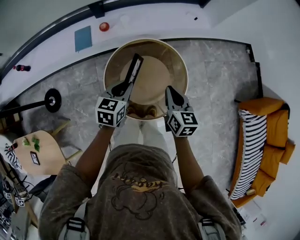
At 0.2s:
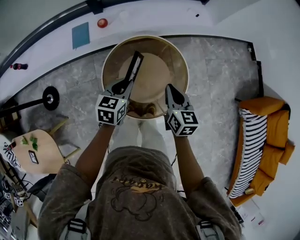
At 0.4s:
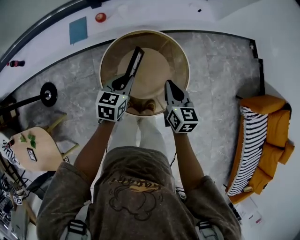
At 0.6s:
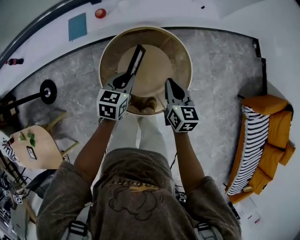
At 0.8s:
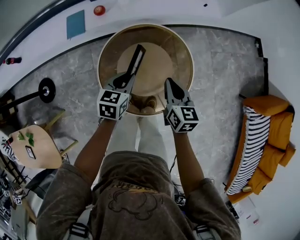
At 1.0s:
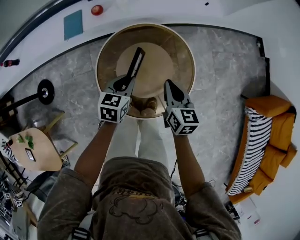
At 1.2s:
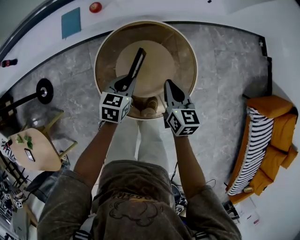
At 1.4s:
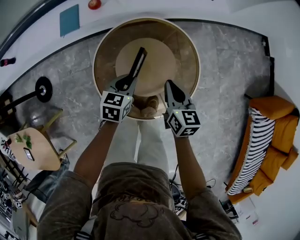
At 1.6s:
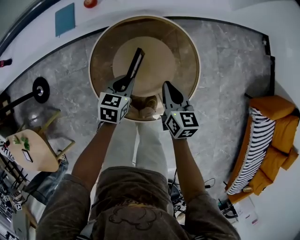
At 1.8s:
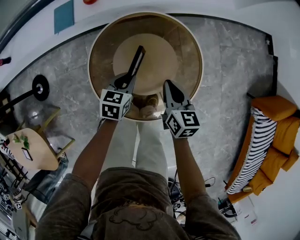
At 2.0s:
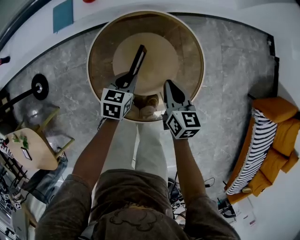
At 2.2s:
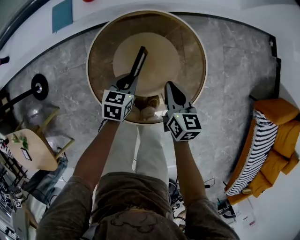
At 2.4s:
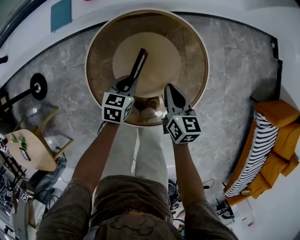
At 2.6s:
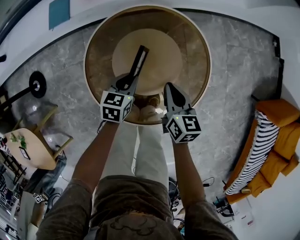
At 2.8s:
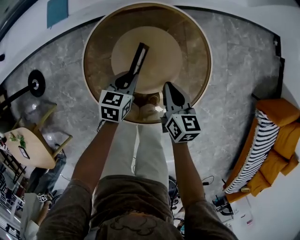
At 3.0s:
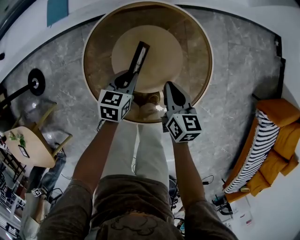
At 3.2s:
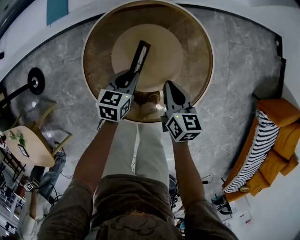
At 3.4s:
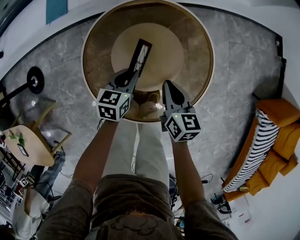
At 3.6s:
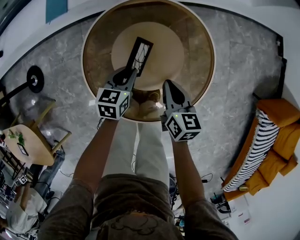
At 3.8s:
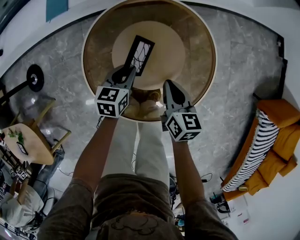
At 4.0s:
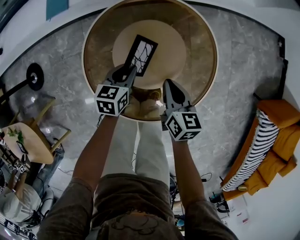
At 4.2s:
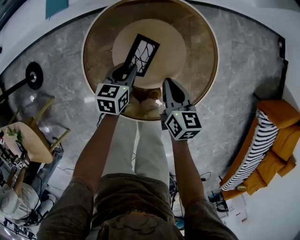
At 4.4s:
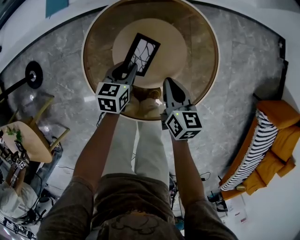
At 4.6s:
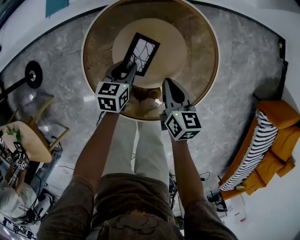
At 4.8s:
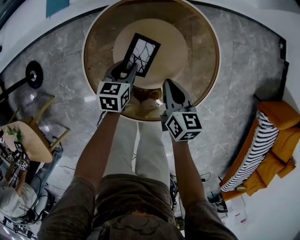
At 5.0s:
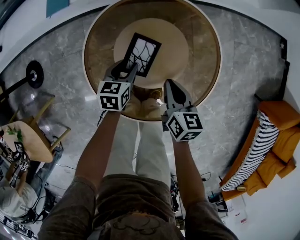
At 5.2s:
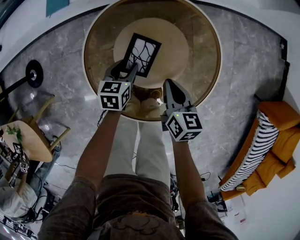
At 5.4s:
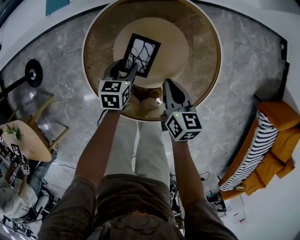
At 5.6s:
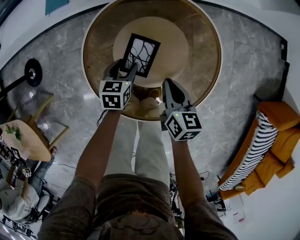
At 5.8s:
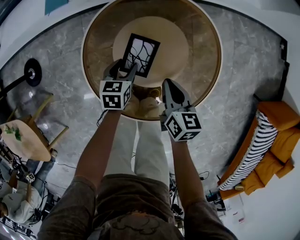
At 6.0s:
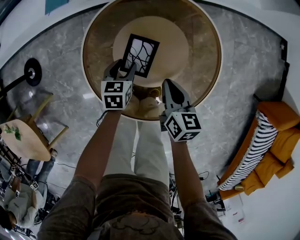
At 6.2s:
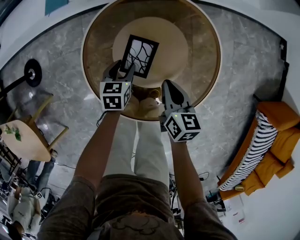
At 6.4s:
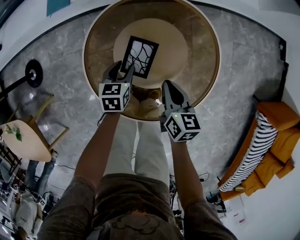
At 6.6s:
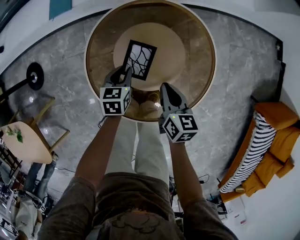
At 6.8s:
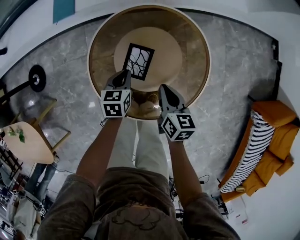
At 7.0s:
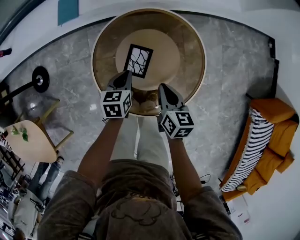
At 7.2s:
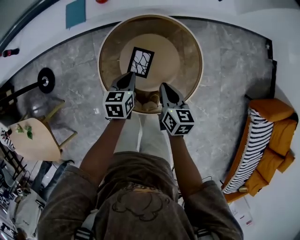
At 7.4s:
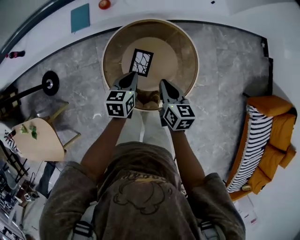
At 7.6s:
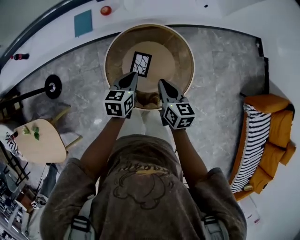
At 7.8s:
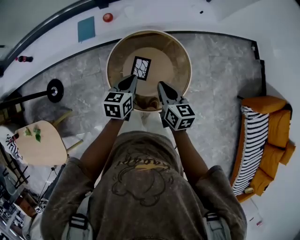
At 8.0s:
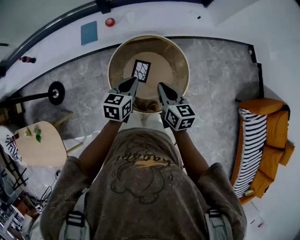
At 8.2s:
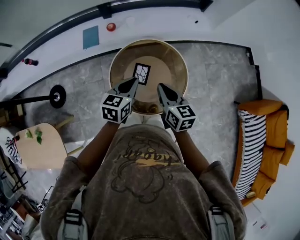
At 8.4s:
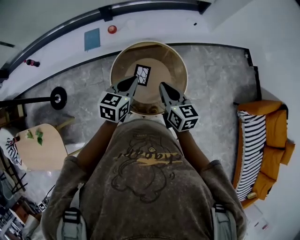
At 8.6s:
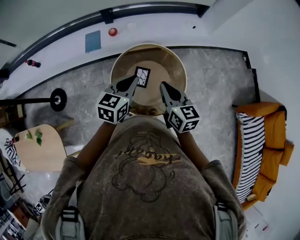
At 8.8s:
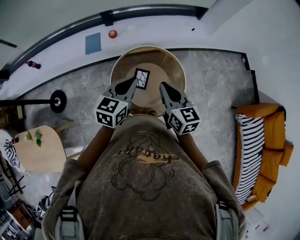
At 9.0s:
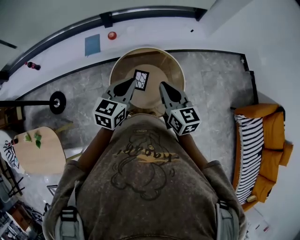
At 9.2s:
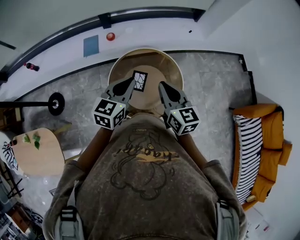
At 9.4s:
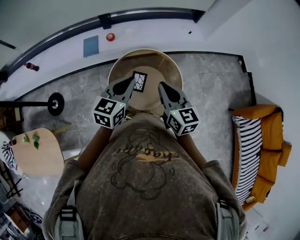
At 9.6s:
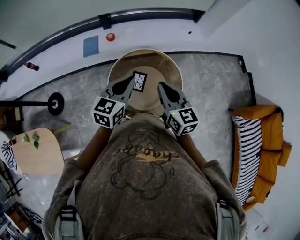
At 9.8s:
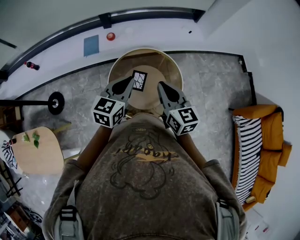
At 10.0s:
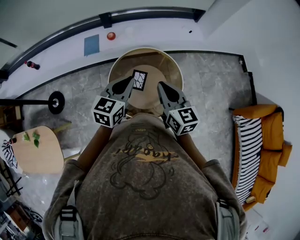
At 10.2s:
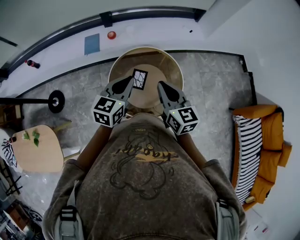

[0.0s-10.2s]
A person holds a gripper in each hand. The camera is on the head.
0.0s to 1.4s: Both grippers travel together downward, roughly 15 cm.
1.4s to 3.0s: Both grippers move downward, roughly 10 cm.
3.0s to 4.4s: There are only small adjustments of the grippers.
4.4s to 5.8s: The left gripper opens its fingers.
5.8s to 7.2s: Both grippers travel together upward, roughly 15 cm. The left gripper closes.
7.2s to 8.8s: The two grippers go about 30 cm upward. The left gripper turns by roughly 30 degrees. Meanwhile the right gripper rotates some 30 degrees.
8.8s to 10.2s: The grippers move only a little.

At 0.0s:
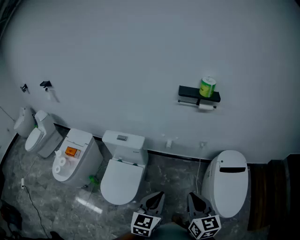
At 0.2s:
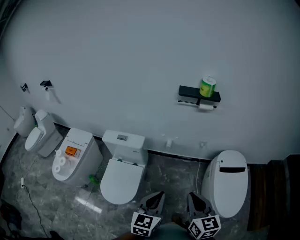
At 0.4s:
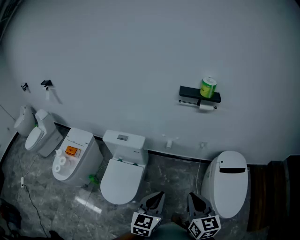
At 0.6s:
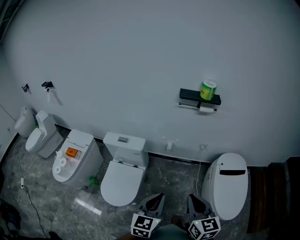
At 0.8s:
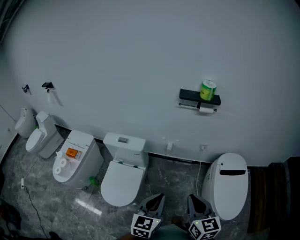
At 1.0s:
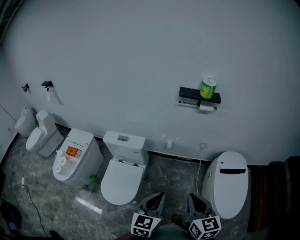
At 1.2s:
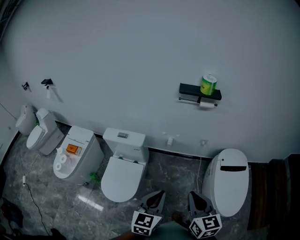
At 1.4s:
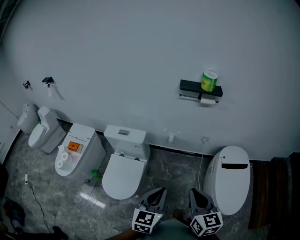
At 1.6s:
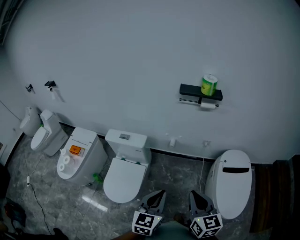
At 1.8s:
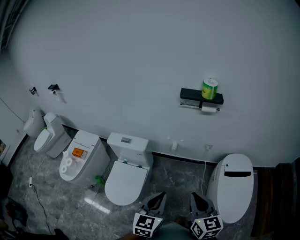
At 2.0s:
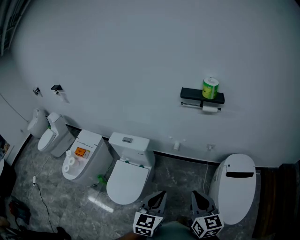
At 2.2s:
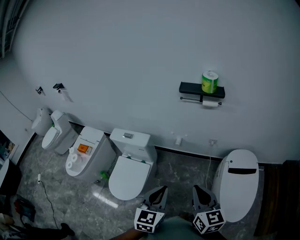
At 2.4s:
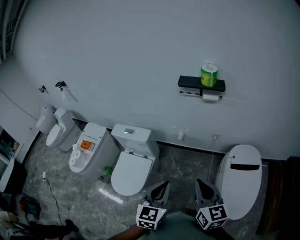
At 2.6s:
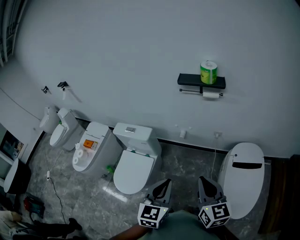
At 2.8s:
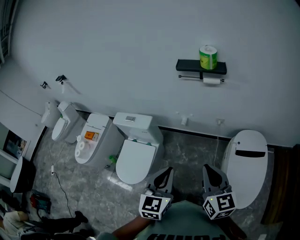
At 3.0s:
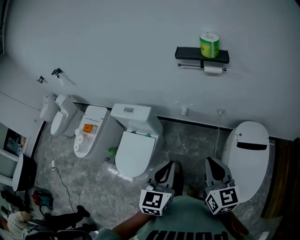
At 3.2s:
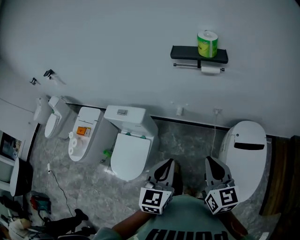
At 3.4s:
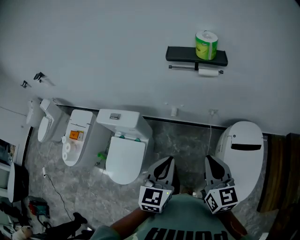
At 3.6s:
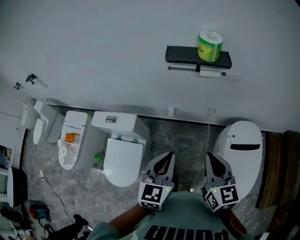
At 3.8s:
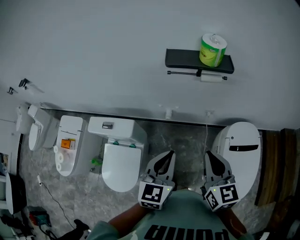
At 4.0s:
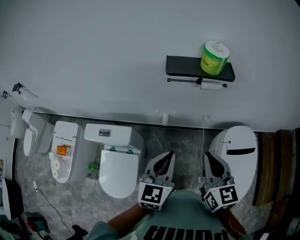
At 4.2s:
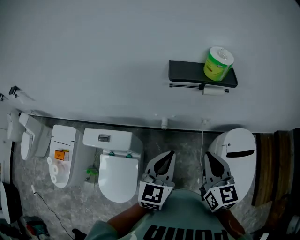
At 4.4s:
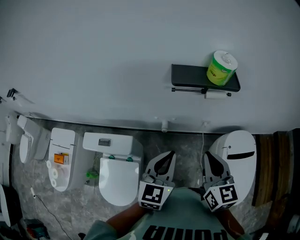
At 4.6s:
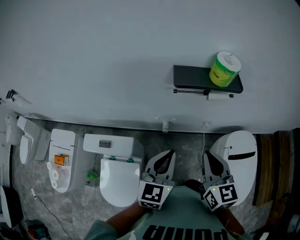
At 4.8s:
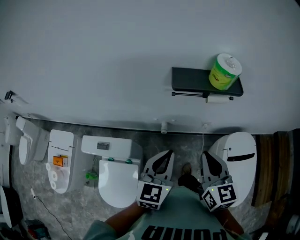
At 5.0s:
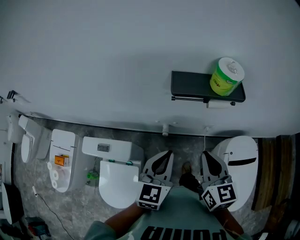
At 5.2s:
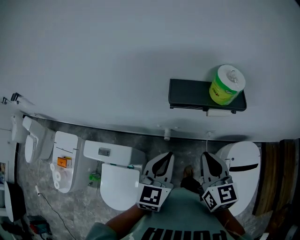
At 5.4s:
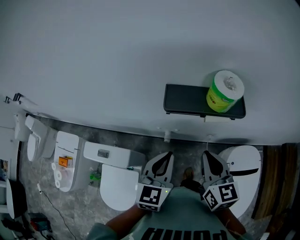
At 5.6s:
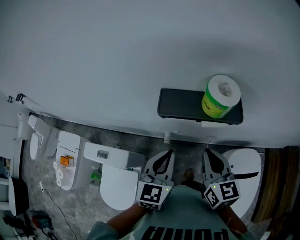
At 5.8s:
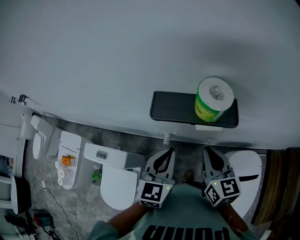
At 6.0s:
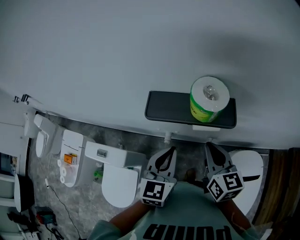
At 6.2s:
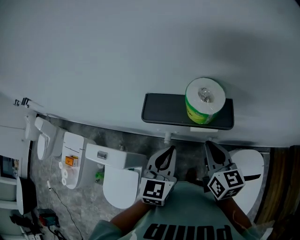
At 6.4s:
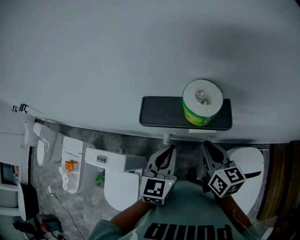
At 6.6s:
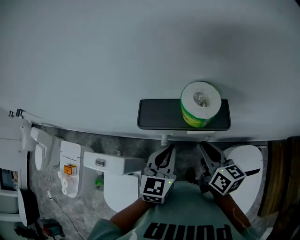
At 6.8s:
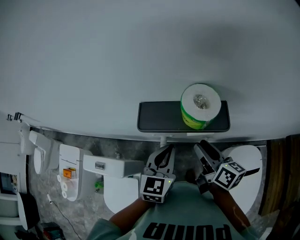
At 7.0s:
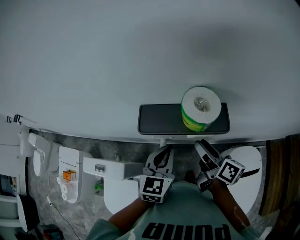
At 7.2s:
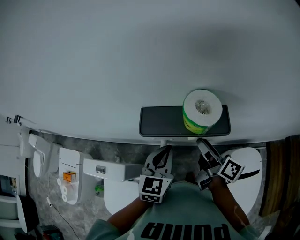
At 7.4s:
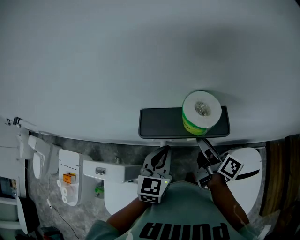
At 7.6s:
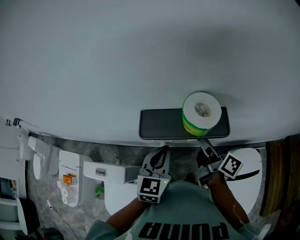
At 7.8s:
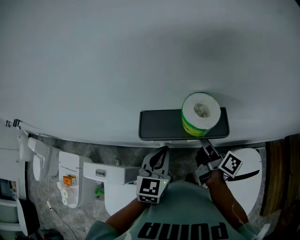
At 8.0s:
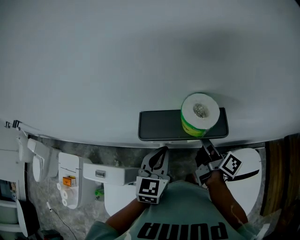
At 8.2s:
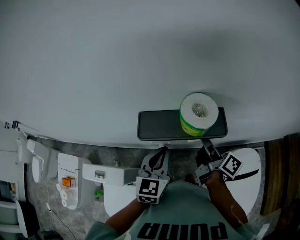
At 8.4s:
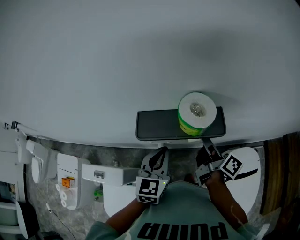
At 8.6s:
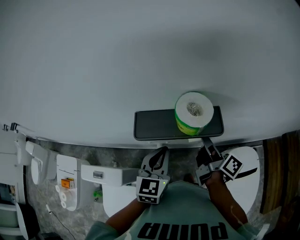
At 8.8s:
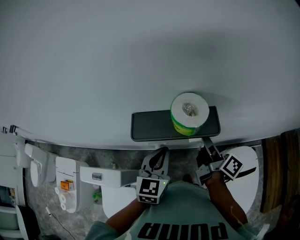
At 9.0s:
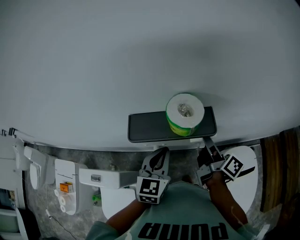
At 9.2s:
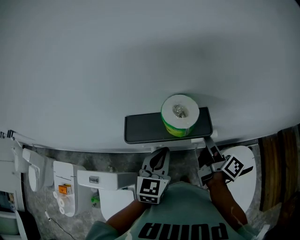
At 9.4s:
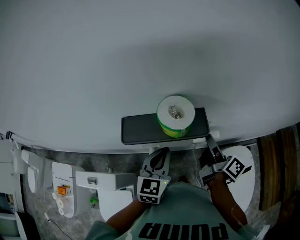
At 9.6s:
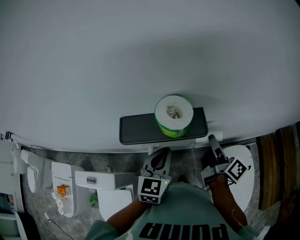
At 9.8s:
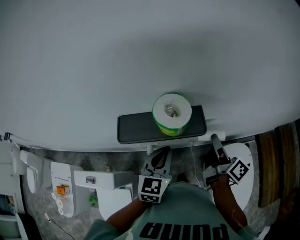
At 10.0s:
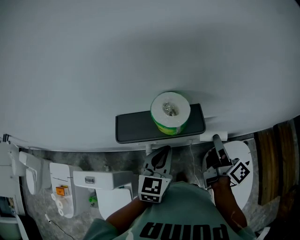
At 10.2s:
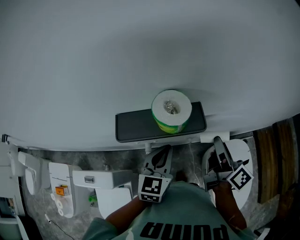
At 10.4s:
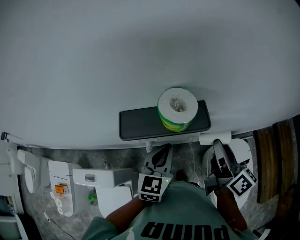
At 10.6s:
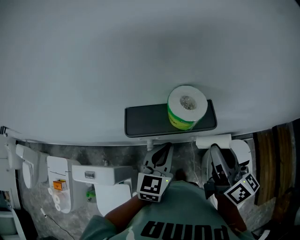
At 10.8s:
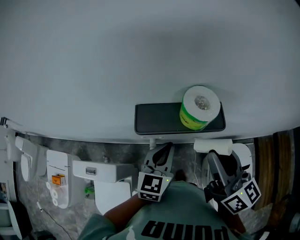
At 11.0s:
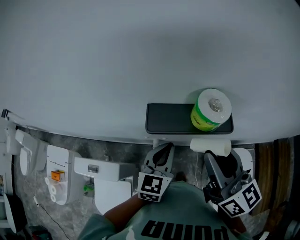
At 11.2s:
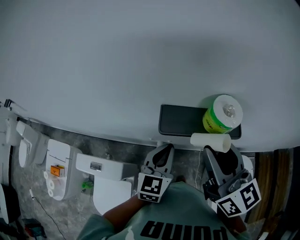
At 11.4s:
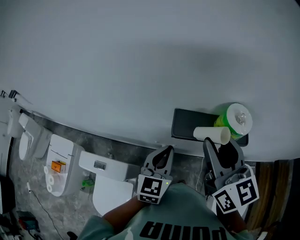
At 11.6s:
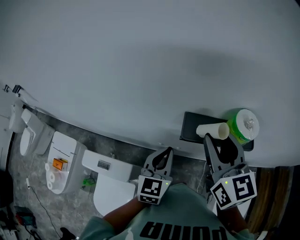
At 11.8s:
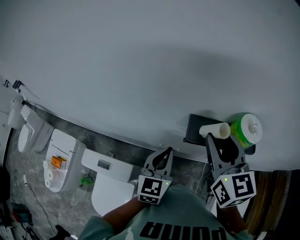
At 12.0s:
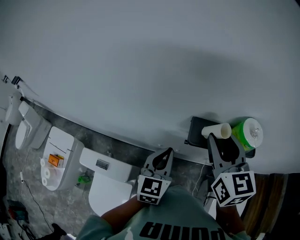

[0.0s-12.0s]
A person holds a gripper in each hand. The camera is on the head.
0.0s to 1.6s: There are only small adjustments of the grippers.
1.6s to 3.0s: The grippers both shift to the right and forward by some 10 cm.
3.0s to 4.4s: The two grippers go approximately 25 cm forward.
4.4s to 6.0s: The grippers both shift forward and to the right by some 20 cm.
6.0s to 7.6s: The two grippers go some 5 cm forward. The right gripper rotates around the line of its fingers by roughly 50 degrees, clockwise from behind, and opens its fingers.
7.6s to 9.0s: The right gripper moves to the right, roughly 5 cm.
9.0s to 10.4s: The right gripper is displaced upward and backward by roughly 10 cm, and rotates about 30 degrees.
10.4s to 12.0s: Both grippers travel together to the left, approximately 20 cm. The right gripper twists roughly 50 degrees counterclockwise, seen from behind.

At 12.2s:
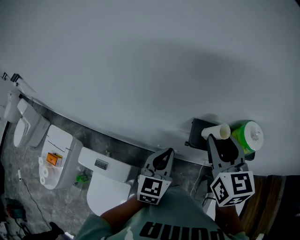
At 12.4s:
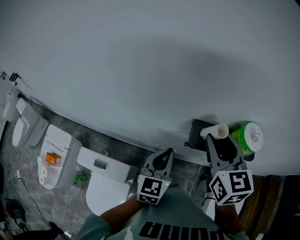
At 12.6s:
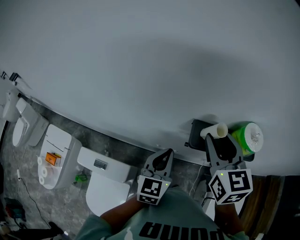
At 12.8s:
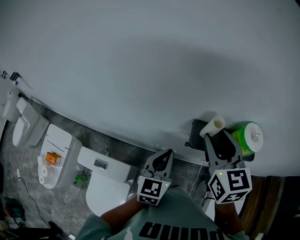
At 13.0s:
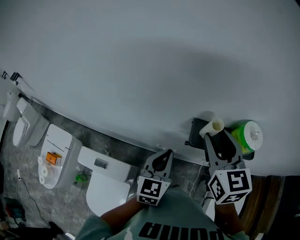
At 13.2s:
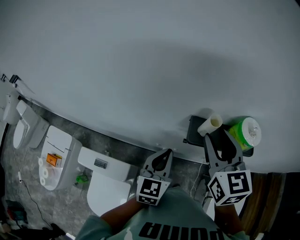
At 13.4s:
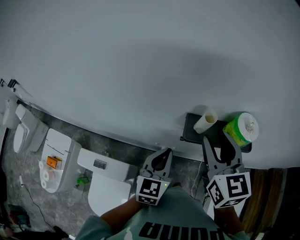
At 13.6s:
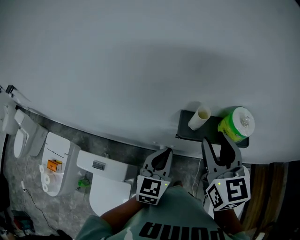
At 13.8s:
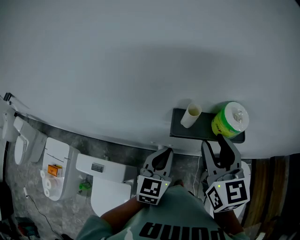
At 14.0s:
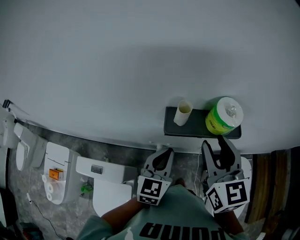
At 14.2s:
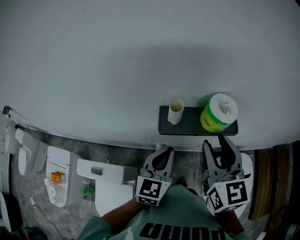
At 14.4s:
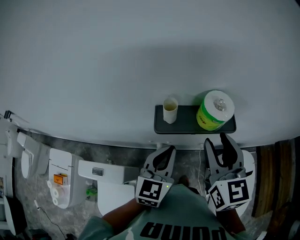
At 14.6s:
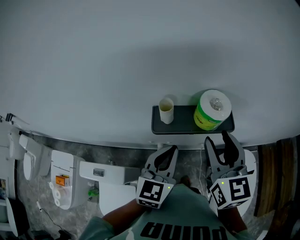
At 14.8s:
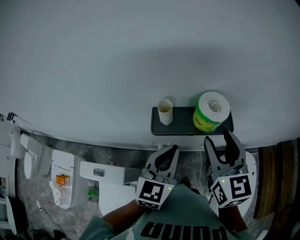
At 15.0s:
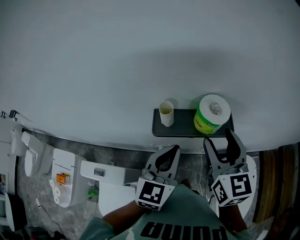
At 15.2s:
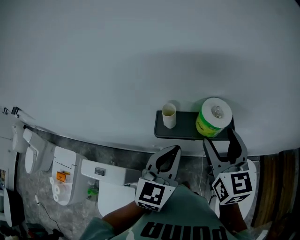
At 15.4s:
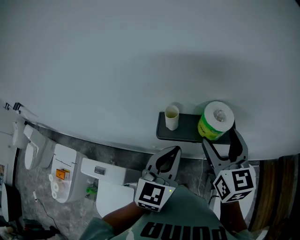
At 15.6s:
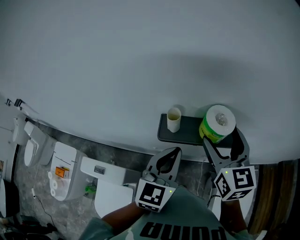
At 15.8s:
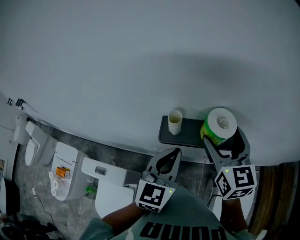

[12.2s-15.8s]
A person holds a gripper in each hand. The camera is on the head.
12.2s to 14.0s: The left gripper is displaced to the right by some 5 cm, while the right gripper goes approximately 10 cm to the right and backward.
14.0s to 15.8s: The left gripper heads upward, covering approximately 10 cm, while the right gripper is displaced forward by about 5 cm, and opens up.
